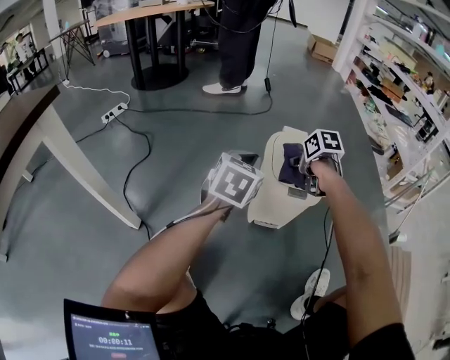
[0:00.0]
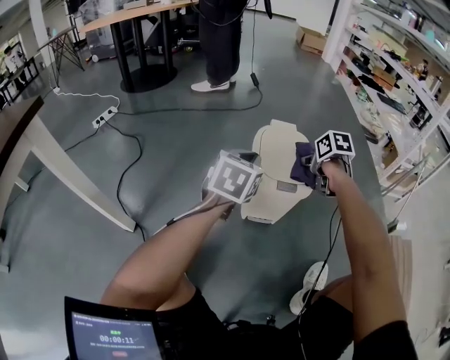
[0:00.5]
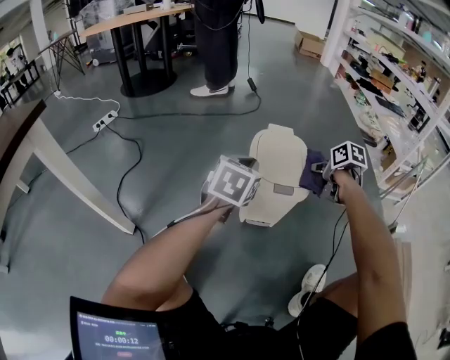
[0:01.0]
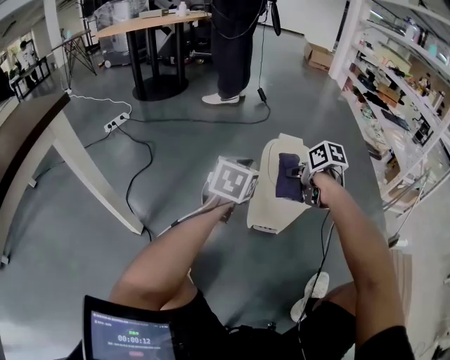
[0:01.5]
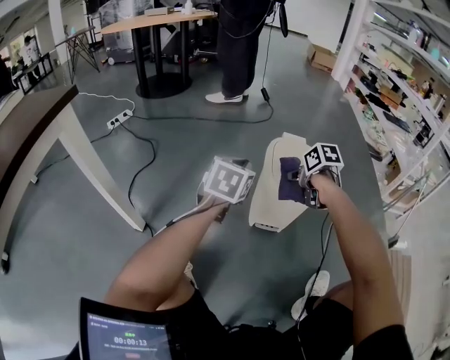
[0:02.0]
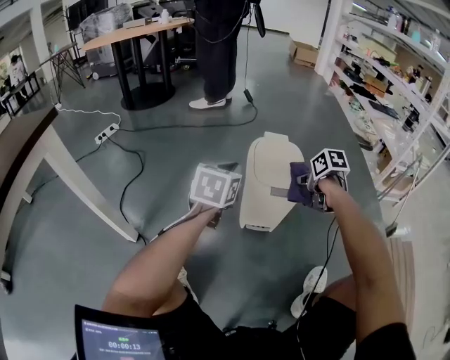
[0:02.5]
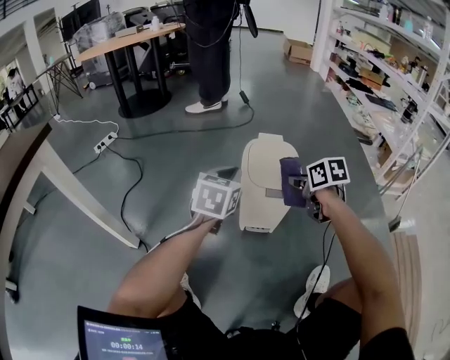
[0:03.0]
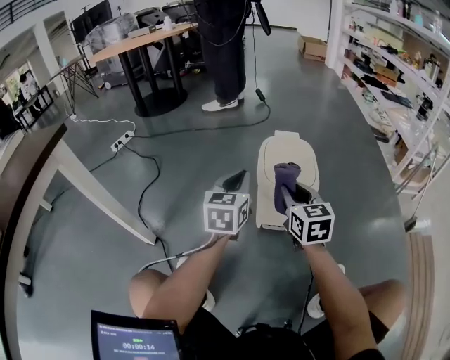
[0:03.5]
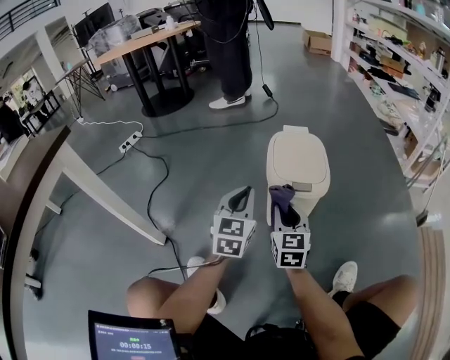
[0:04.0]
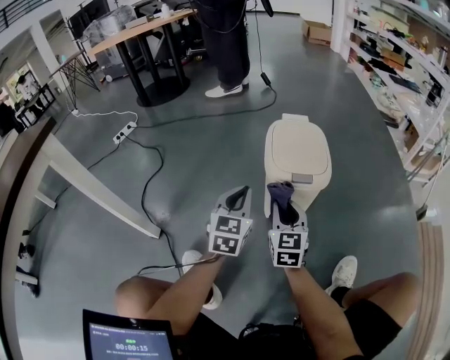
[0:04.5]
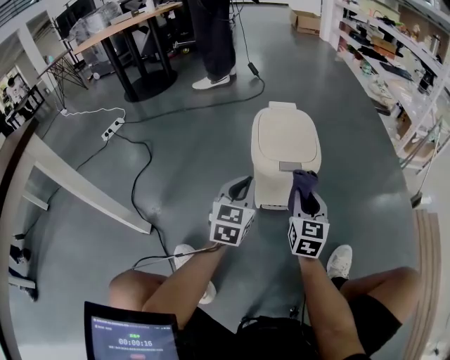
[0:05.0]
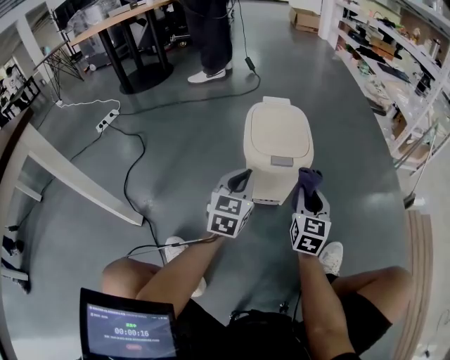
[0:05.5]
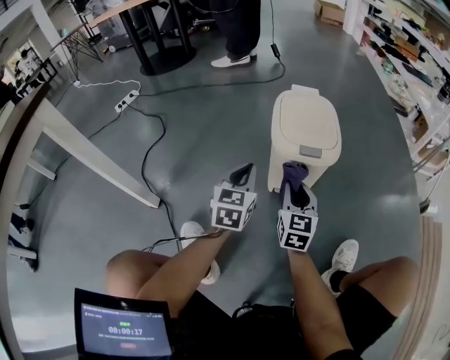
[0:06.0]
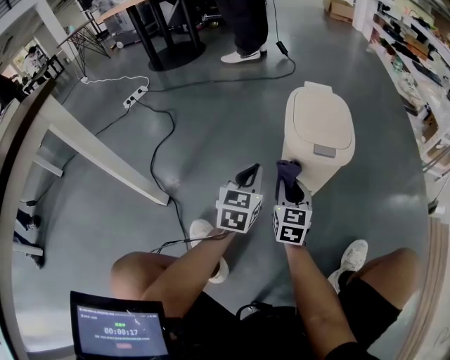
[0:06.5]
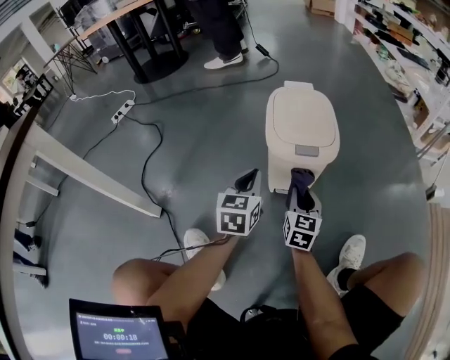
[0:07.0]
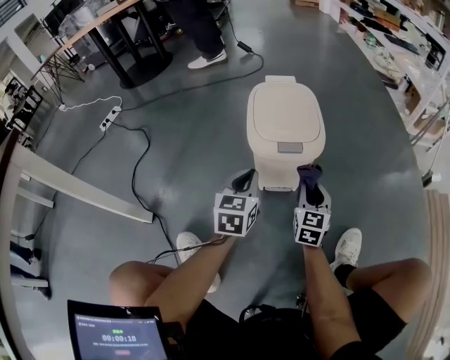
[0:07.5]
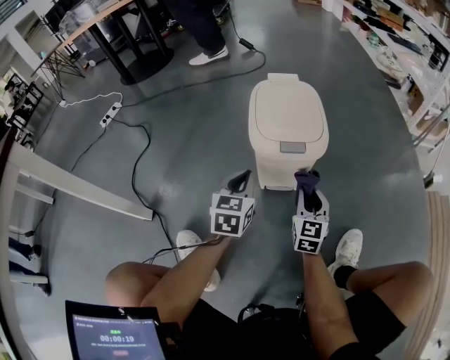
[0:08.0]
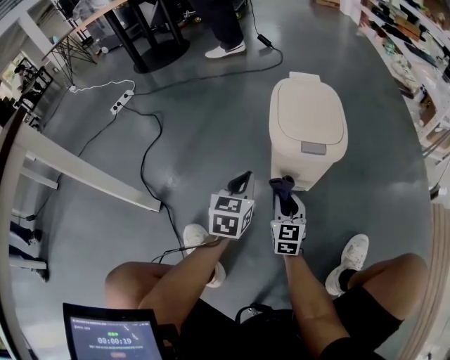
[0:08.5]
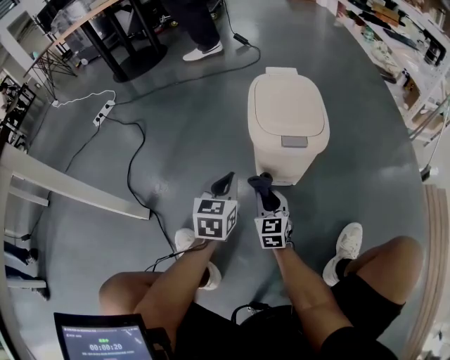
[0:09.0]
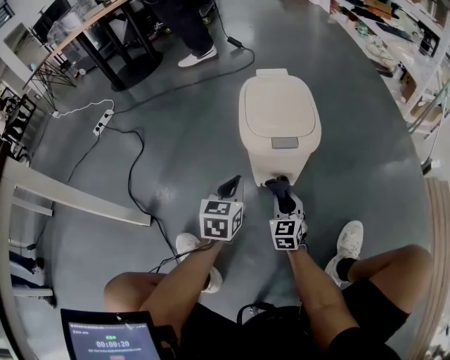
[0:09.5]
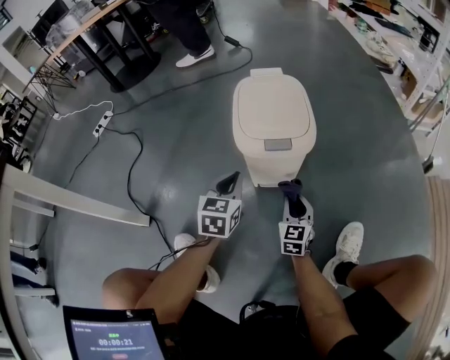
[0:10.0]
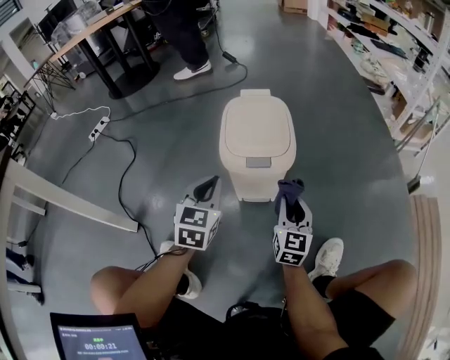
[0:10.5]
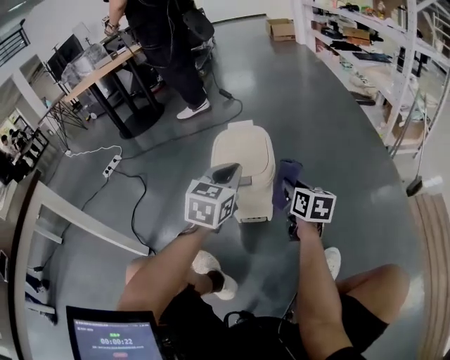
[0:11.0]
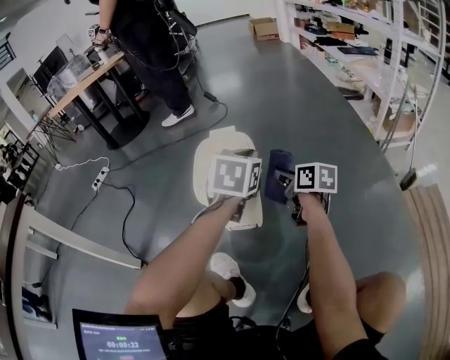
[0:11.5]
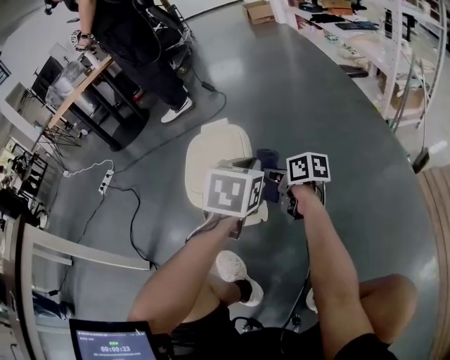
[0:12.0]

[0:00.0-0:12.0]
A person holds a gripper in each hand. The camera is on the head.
0:00.0 to 0:02.0: The right gripper travels backward by approximately 5 cm, and travels to the right and back again, roughly 10 cm each way.
0:02.0 to 0:04.0: The left gripper shifts by approximately 5 cm, and rotates roughly 20 degrees. The right gripper heads backward, covering about 10 cm, travels to the right and back again, approximately 10 cm each way, and angles its fingers upward, by roughly 40 degrees.
0:04.0 to 0:06.0: Both grippers travel together downward, about 5 cm. The right gripper moves about 15 cm to the right and comes back.
0:06.0 to 0:08.0: The right gripper heads to the right and downward, covering some 15 cm; the left gripper shifts roughly 5 cm downward.
0:08.0 to 0:10.0: The right gripper moves downward, about 5 cm, and moves about 15 cm to the left and comes back.
0:10.0 to 0:12.0: The left gripper travels to the right and upward by about 30 cm. Meanwhile the right gripper moves upward, forward and to the right, roughly 25 cm, and rotates approximately 60 degrees.

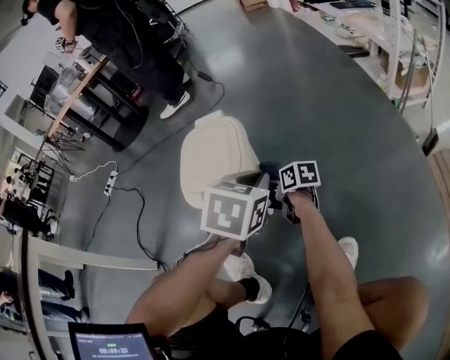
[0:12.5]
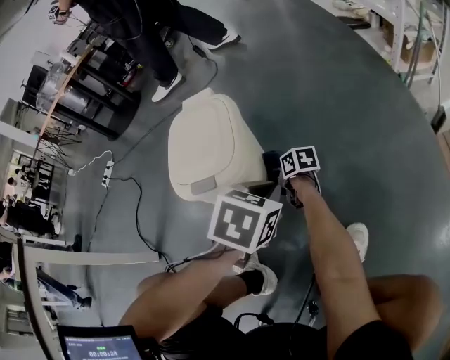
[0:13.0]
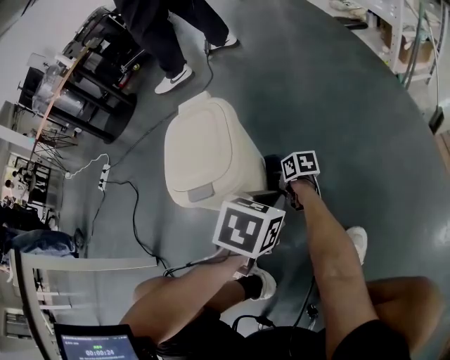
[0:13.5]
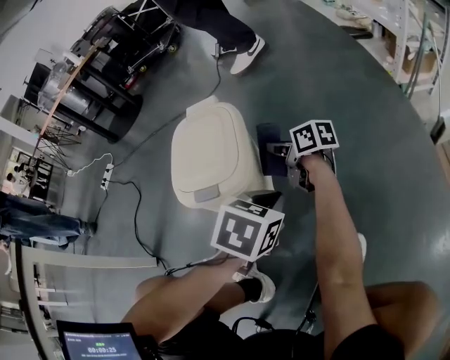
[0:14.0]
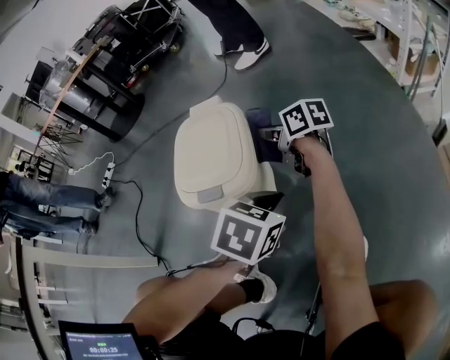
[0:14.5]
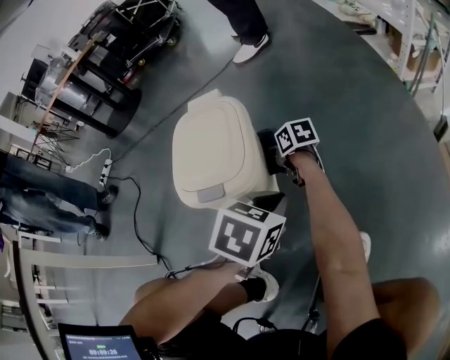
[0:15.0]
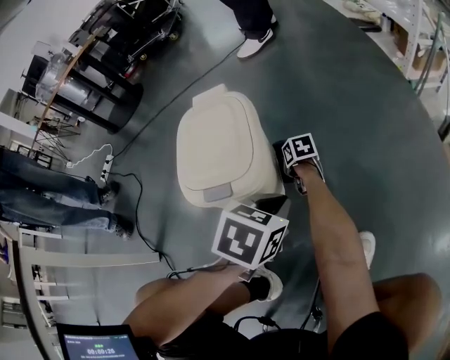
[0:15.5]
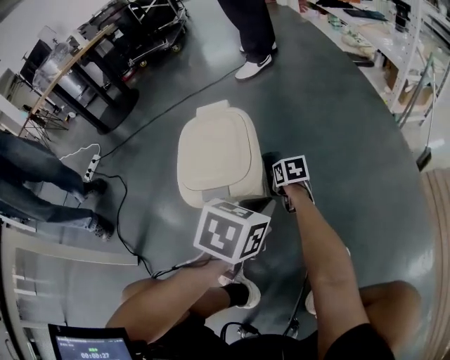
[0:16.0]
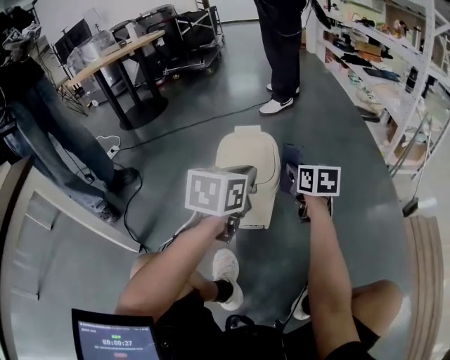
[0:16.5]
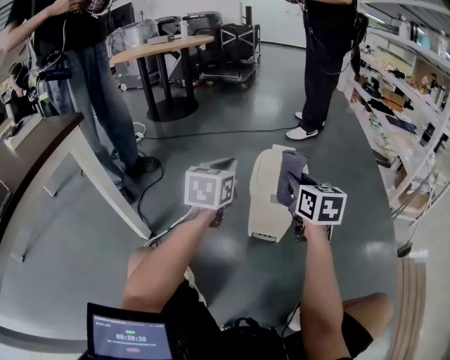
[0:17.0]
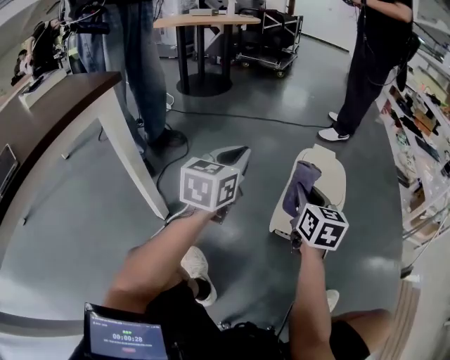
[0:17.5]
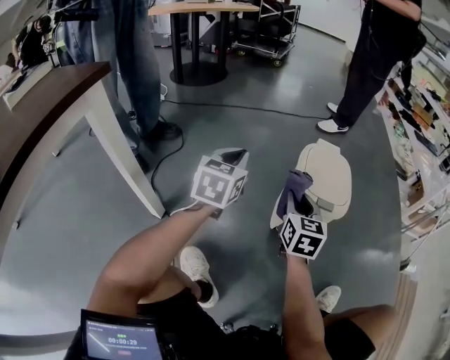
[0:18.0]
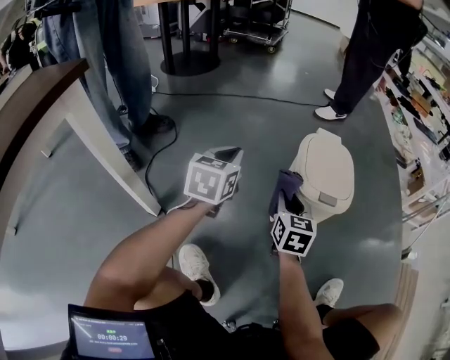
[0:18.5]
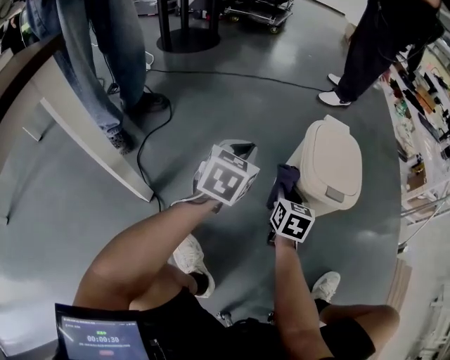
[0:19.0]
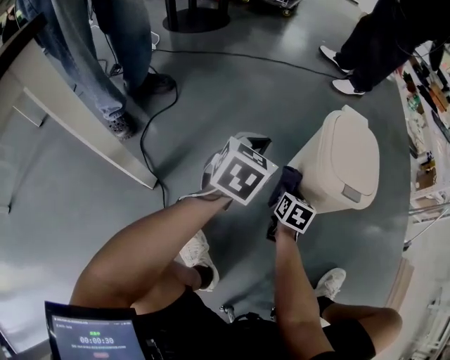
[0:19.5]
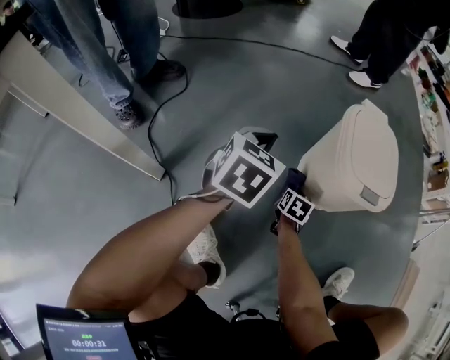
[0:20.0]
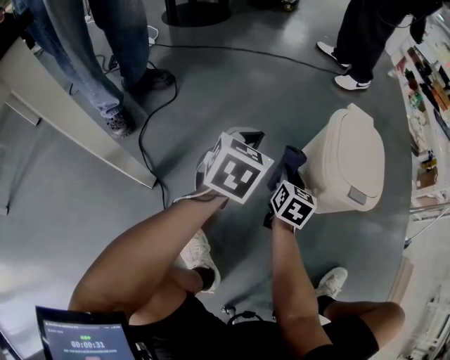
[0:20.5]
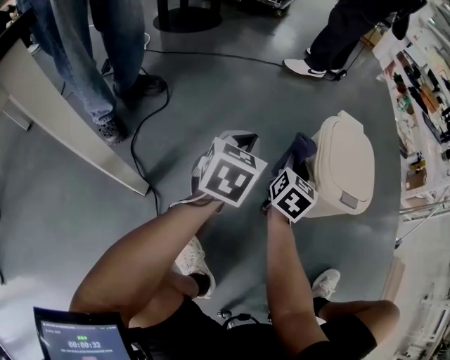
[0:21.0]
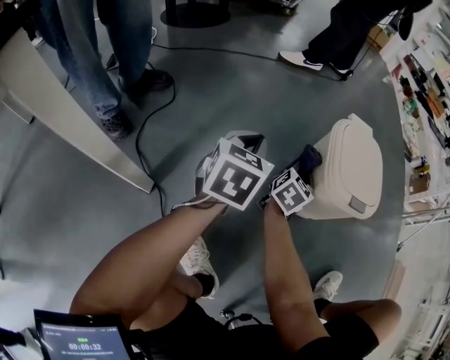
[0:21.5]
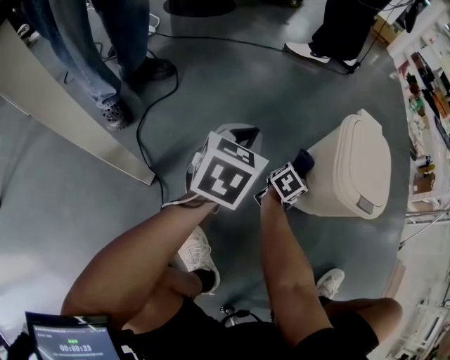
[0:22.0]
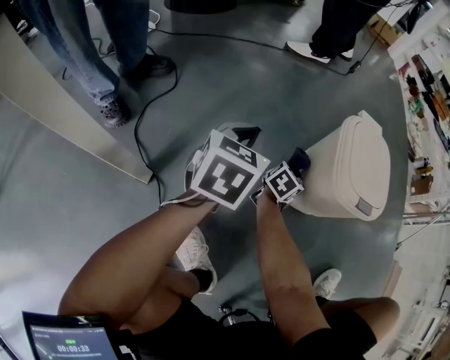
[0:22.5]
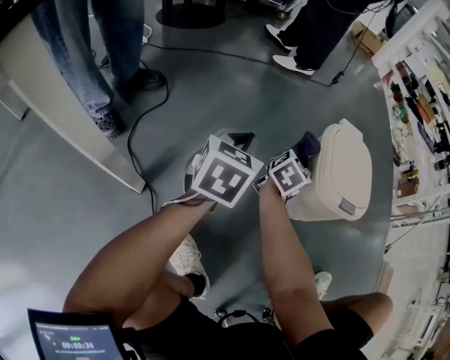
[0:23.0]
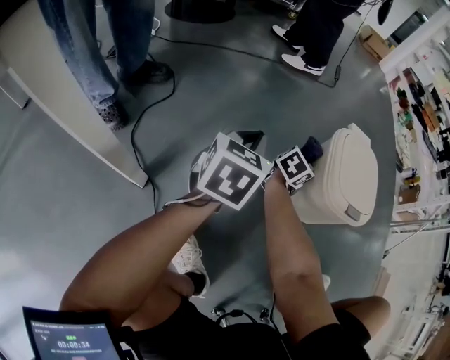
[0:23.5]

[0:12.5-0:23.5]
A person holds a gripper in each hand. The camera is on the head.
0:12.5 to 0:14.5: The left gripper goes approximately 5 cm downward, while the right gripper goes roughly 15 cm upward and forward.
0:14.5 to 0:16.0: The right gripper shifts about 15 cm downward, and changes its angle by about 30 degrees.
0:16.0 to 0:18.0: The left gripper heads to the left, covering about 40 cm, and turns by some 40 degrees; the right gripper goes about 40 cm upward, to the left and backward, and turns by approximately 40 degrees.
0:18.0 to 0:20.0: The left gripper goes some 10 cm downward. The right gripper travels downward by roughly 35 cm, and angles its fingers downward, by approximately 30 degrees.
0:20.0 to 0:21.5: The right gripper heads upward and forward, covering roughly 20 cm, and turns by about 30 degrees.
0:21.5 to 0:23.5: The right gripper swings up and down, approximately 15 cm each way, with 2 reversals.

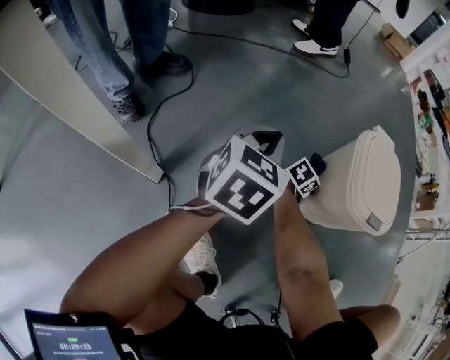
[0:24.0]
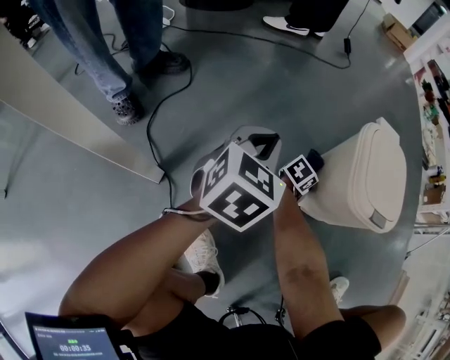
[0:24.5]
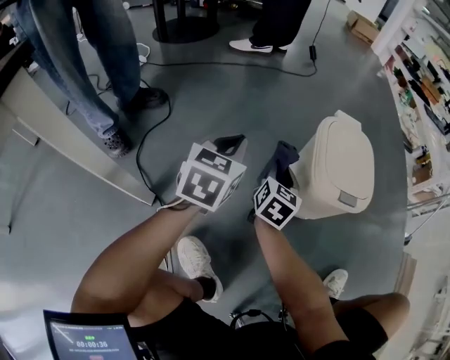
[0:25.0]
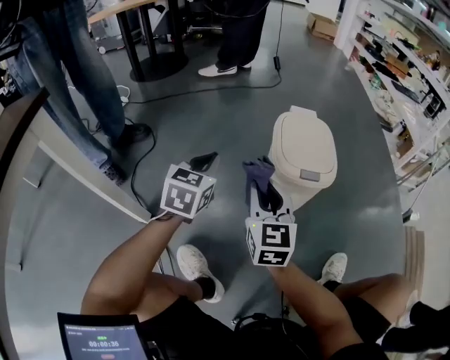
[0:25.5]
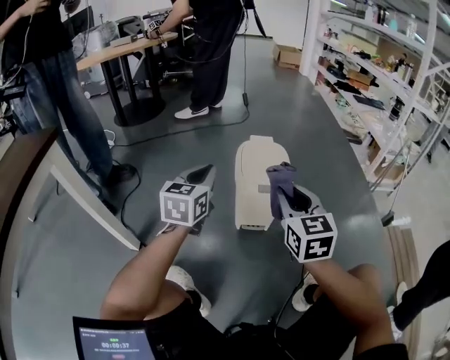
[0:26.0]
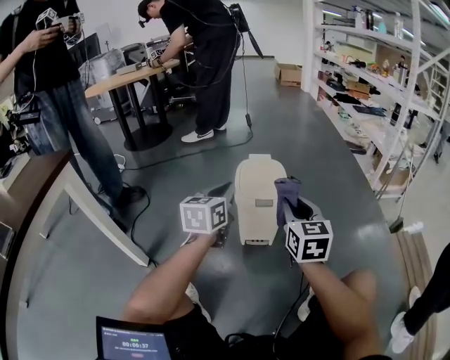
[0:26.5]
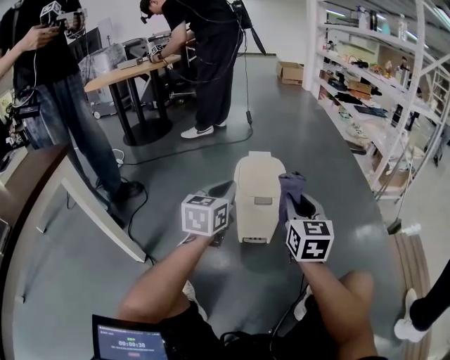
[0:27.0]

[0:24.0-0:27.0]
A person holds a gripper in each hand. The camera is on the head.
0:24.0 to 0:25.5: The right gripper shifts roughly 35 cm upward and backward, and points its fingers about 30 degrees further upward. Meanwhile the left gripper shifts by some 5 cm.
0:25.5 to 0:27.0: Both grippers travel together to the right and upward, approximately 20 cm.
